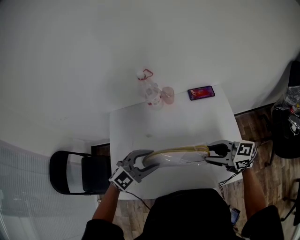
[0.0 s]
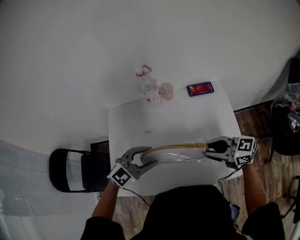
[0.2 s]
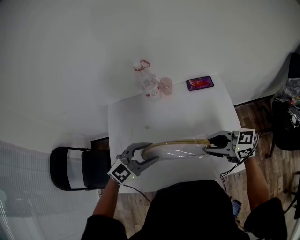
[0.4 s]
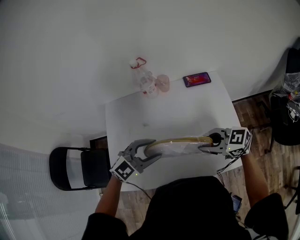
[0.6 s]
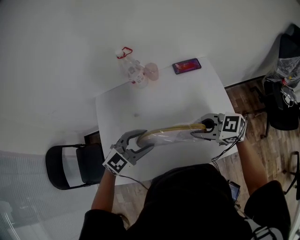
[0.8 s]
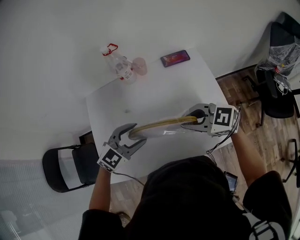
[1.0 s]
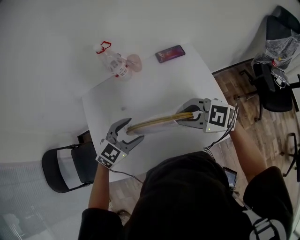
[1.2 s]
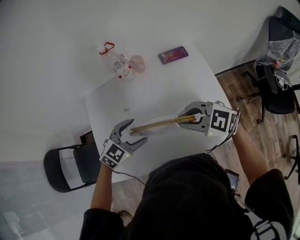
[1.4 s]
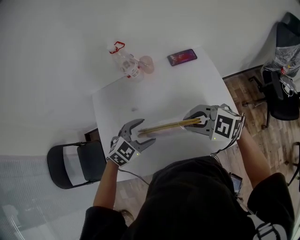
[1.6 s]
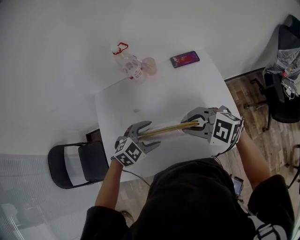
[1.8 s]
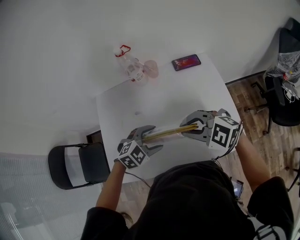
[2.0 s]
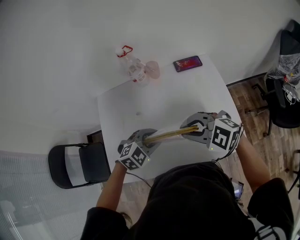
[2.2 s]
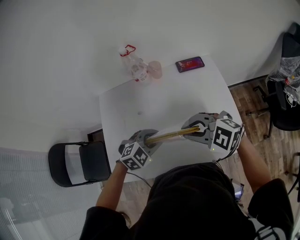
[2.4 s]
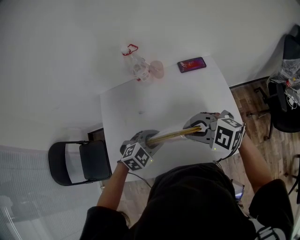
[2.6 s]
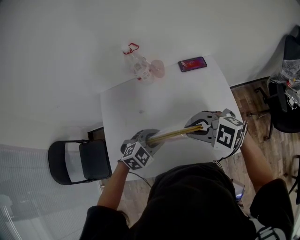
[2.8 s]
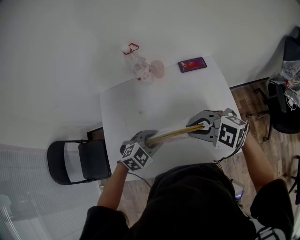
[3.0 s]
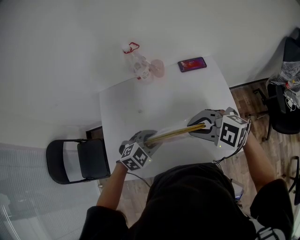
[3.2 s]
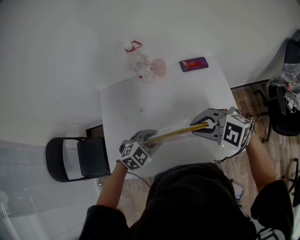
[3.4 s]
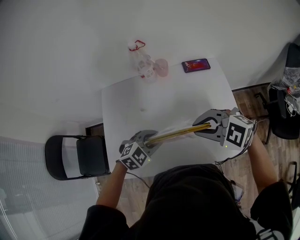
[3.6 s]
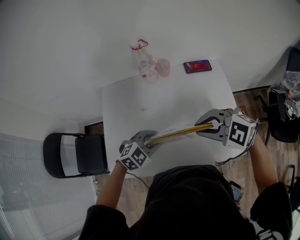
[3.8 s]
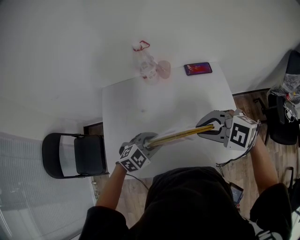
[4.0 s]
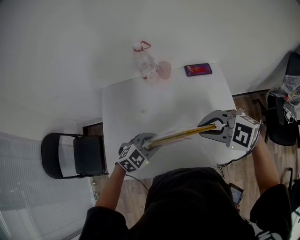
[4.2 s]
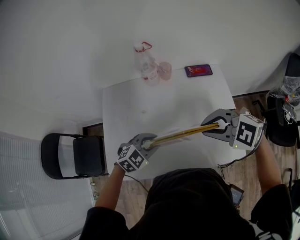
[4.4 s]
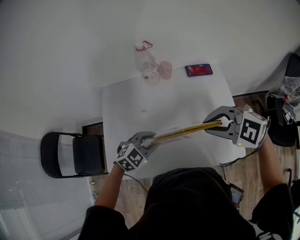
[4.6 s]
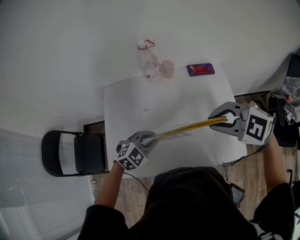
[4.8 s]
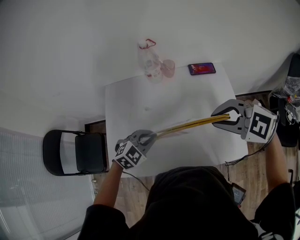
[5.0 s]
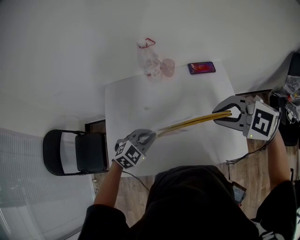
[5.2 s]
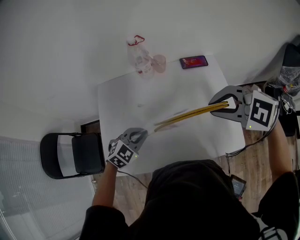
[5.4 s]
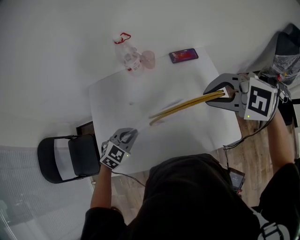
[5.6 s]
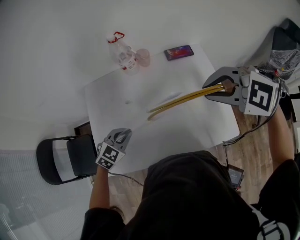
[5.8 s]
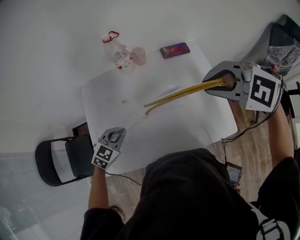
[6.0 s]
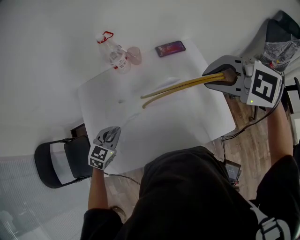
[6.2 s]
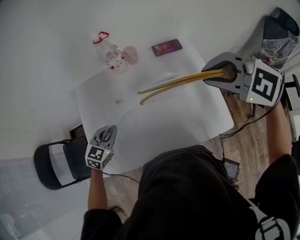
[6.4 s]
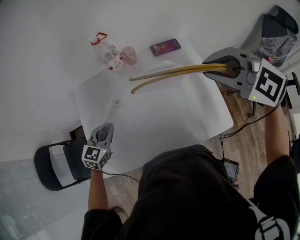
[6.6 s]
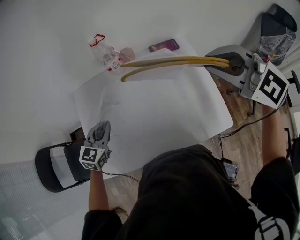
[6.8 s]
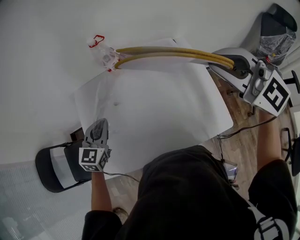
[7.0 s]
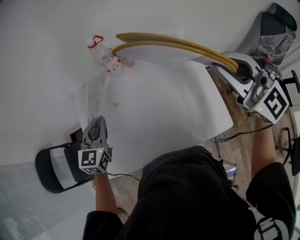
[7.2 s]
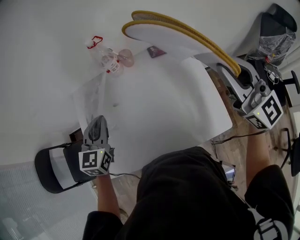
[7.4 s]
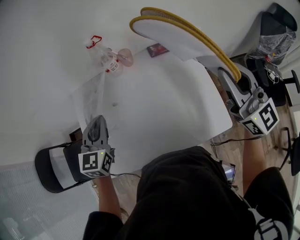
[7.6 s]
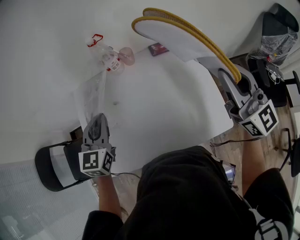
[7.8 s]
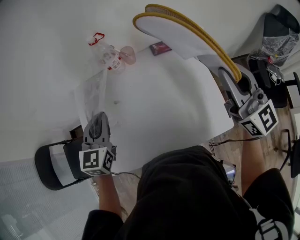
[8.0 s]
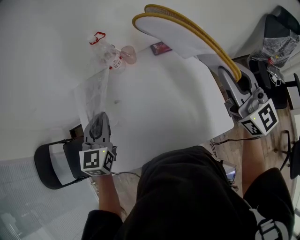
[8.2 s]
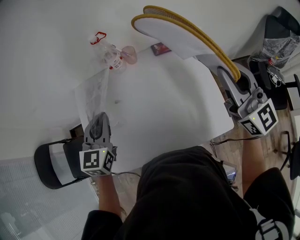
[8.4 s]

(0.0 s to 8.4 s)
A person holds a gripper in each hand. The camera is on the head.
0.0 s - 1.4 s: The right gripper changes its angle by some 30 degrees, and closes up; the left gripper goes roughly 5 cm downward.
1.4 s - 2.8 s: The left gripper closes.
2.8 s - 4.2 s: There are only small adjustments of the grippers.
4.2 s - 5.6 s: The left gripper changes place by approximately 5 cm; the right gripper goes some 5 cm upward.
5.6 s - 7.0 s: The right gripper shifts approximately 10 cm upward and to the right, and angles its fingers upward, by about 30 degrees. Meanwhile the left gripper heads upward and forward, covering about 10 cm, and swivels roughly 30 degrees.
7.0 s - 8.4 s: The left gripper heads upward, covering about 5 cm. Meanwhile the right gripper turns by about 30 degrees.

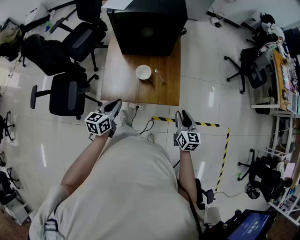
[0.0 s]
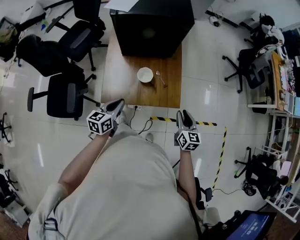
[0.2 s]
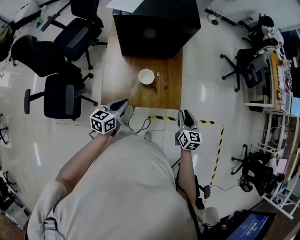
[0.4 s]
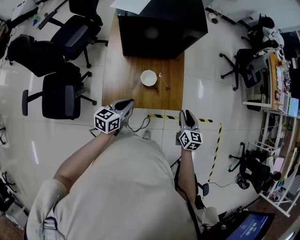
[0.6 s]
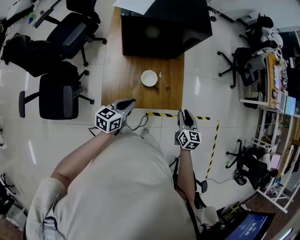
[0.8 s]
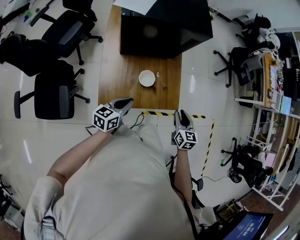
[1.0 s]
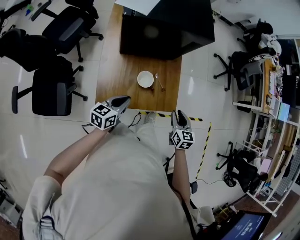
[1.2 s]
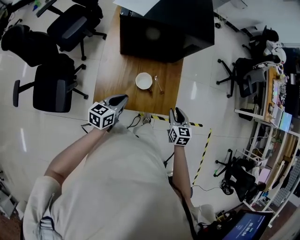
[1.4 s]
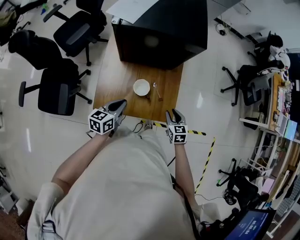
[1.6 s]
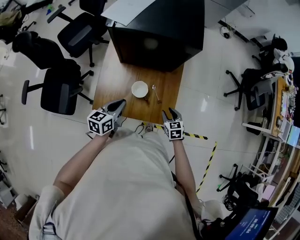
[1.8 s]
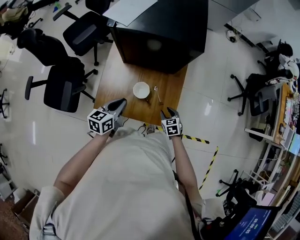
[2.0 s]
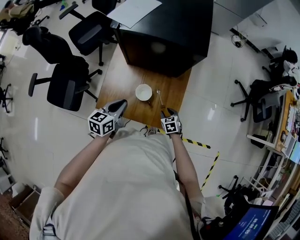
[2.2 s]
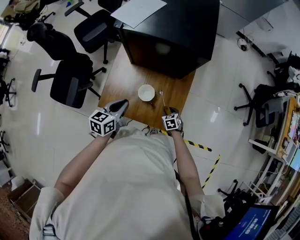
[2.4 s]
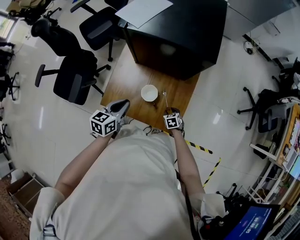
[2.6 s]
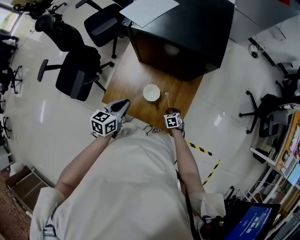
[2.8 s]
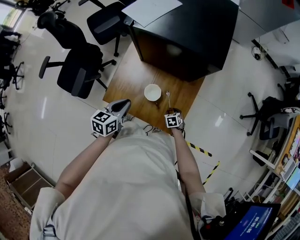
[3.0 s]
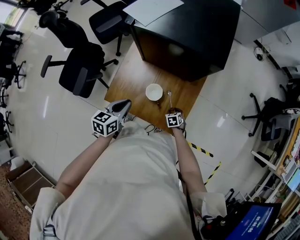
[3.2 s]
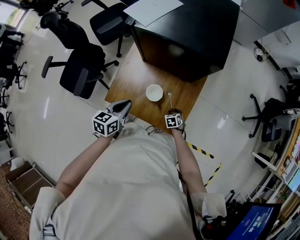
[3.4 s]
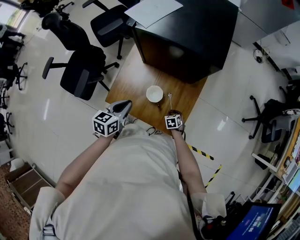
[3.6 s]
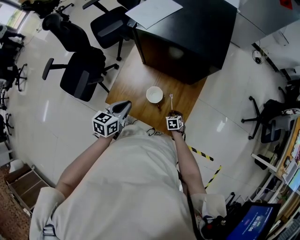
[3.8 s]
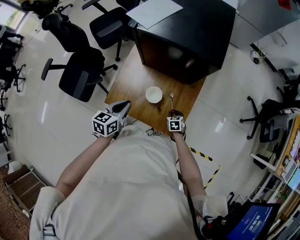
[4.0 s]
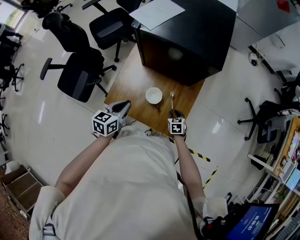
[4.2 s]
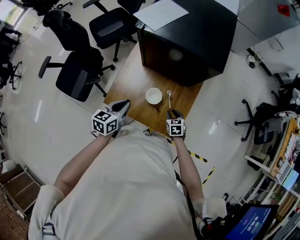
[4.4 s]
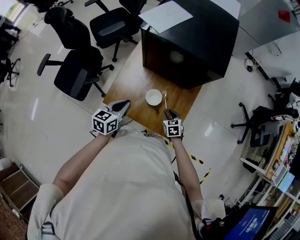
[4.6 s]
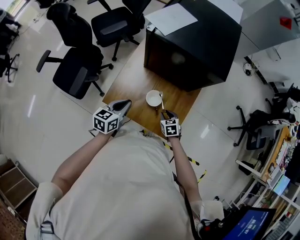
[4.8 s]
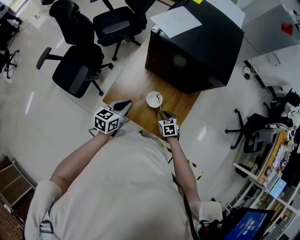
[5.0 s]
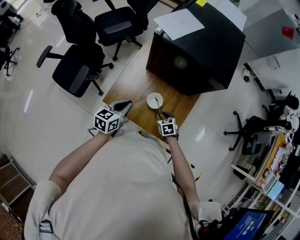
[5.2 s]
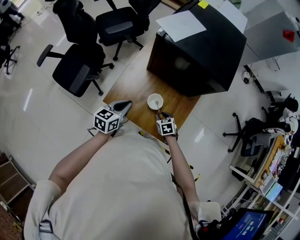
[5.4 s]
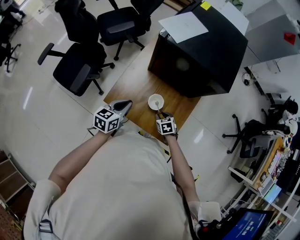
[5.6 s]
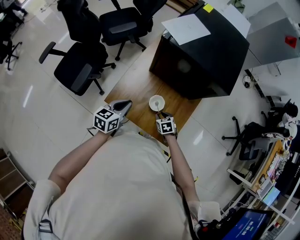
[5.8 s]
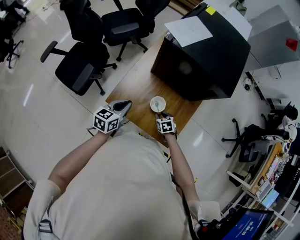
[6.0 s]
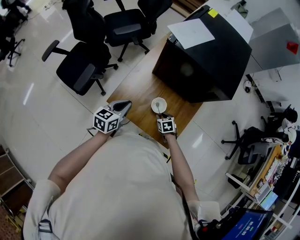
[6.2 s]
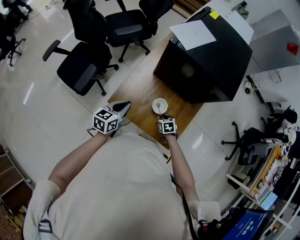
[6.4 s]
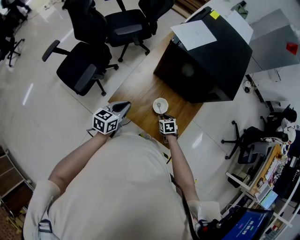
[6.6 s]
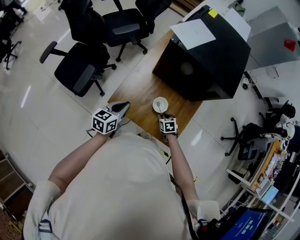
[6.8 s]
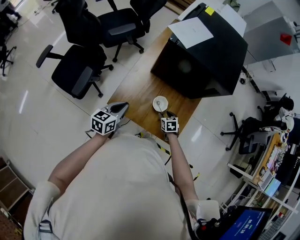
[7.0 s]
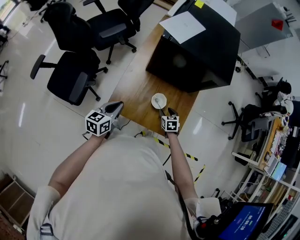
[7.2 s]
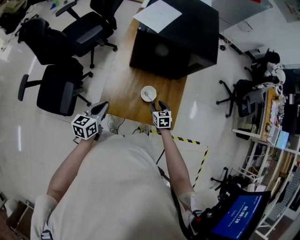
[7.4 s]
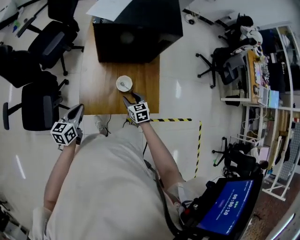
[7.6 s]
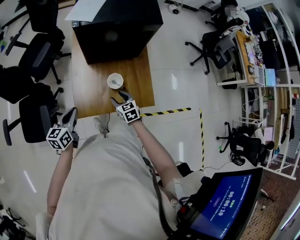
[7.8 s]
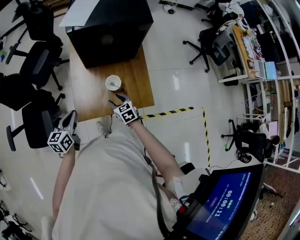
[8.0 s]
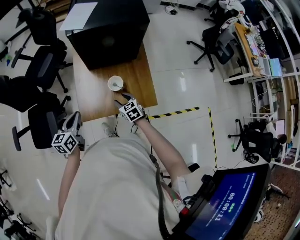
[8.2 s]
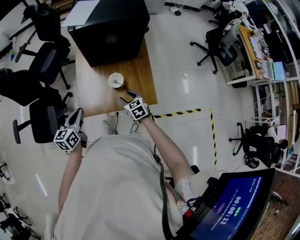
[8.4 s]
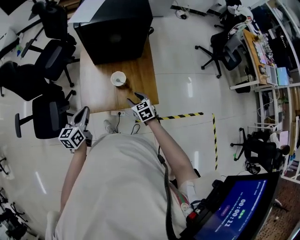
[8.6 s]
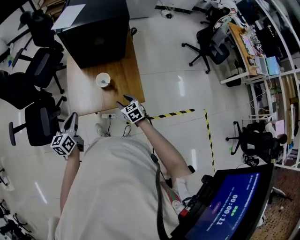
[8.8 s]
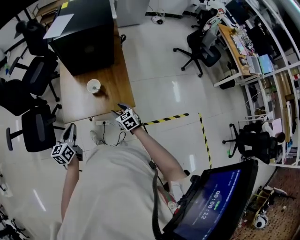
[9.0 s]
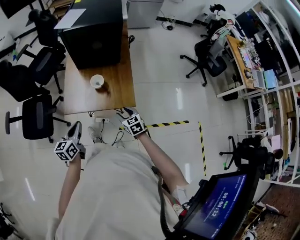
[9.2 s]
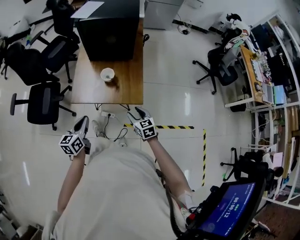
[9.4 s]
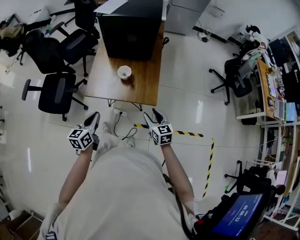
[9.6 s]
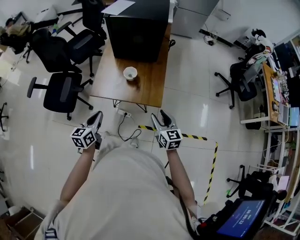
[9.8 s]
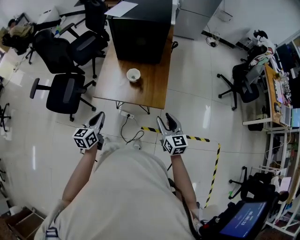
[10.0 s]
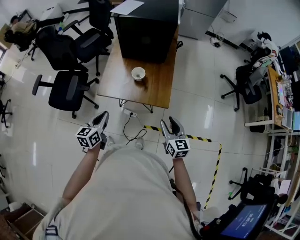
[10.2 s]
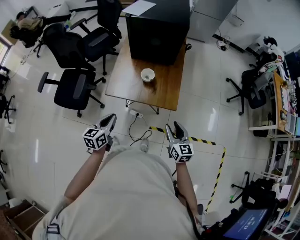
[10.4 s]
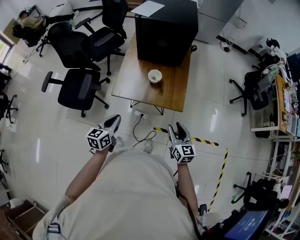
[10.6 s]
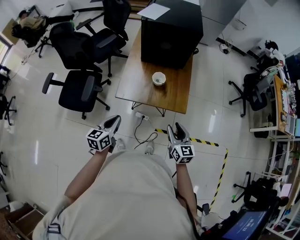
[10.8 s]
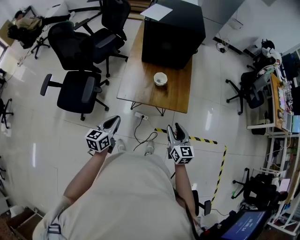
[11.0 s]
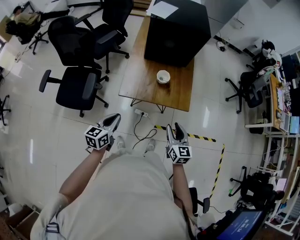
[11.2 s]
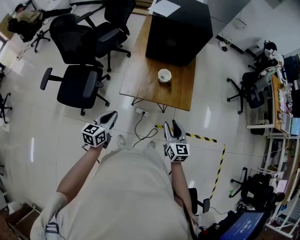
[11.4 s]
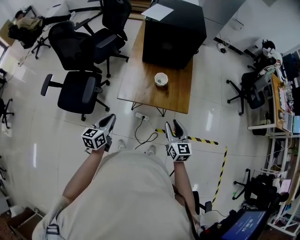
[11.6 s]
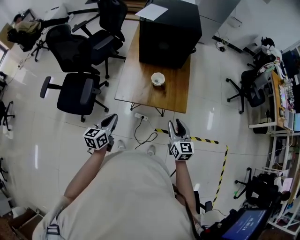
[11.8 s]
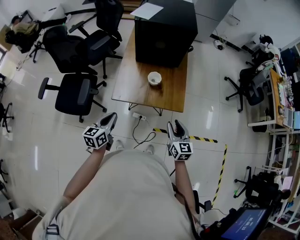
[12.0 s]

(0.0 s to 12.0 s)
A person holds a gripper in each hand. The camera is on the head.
0.0 s - 1.6 s: The left gripper is displaced forward by about 10 cm. The right gripper shifts about 20 cm forward, downward and to the left, and changes its angle by about 30 degrees.
1.6 s - 3.0 s: The right gripper travels downward by approximately 20 cm, and changes its angle by some 30 degrees.
3.0 s - 4.4 s: The right gripper heads upward, covering some 10 cm.
4.4 s - 6.0 s: The right gripper travels to the left by roughly 10 cm.
6.0 s - 7.6 s: The left gripper changes place by approximately 10 cm, while the right gripper moves upward, about 10 cm, and swivels about 40 degrees.
7.6 s - 9.0 s: Both grippers move backward and to the right, about 20 cm.
9.0 s - 10.4 s: The left gripper goes some 10 cm backward; the right gripper goes some 20 cm backward, upward and to the right, and swivels some 20 degrees.
10.4 s - 12.0 s: The two grippers go approximately 5 cm to the left.

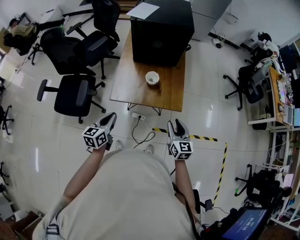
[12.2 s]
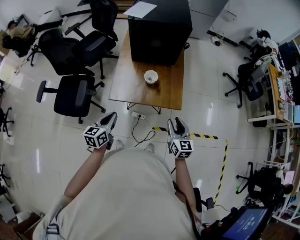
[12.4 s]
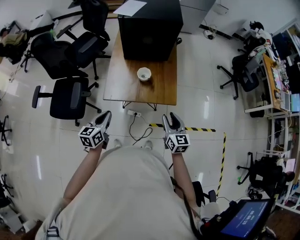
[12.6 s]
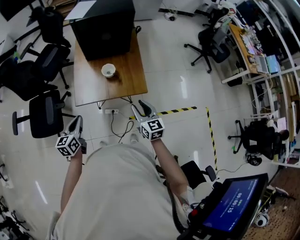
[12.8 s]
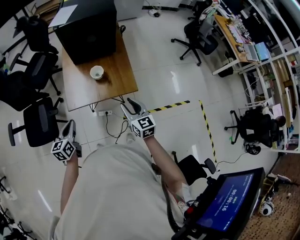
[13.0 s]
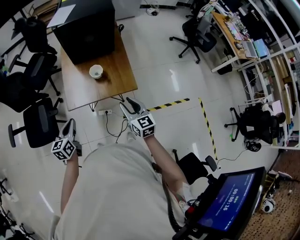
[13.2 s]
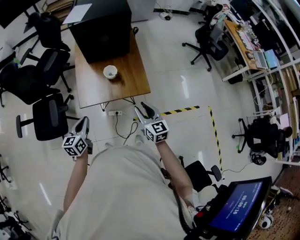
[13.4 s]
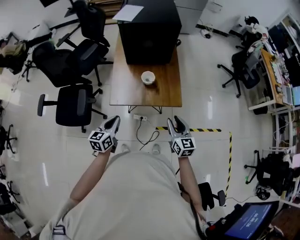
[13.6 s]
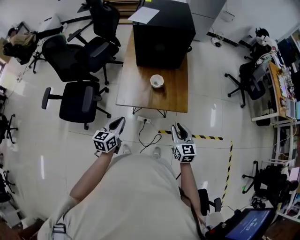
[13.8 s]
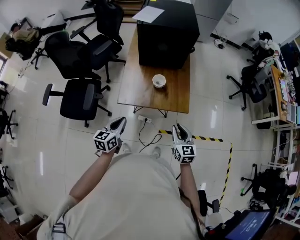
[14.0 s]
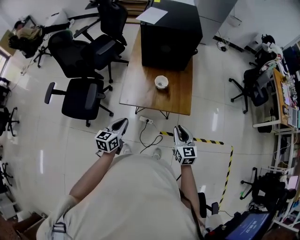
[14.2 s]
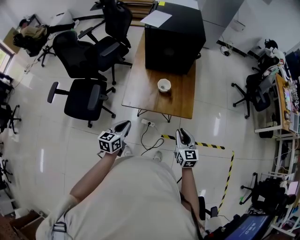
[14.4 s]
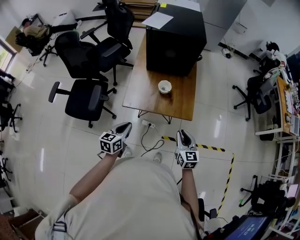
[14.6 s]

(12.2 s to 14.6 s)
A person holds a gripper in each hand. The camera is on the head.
12.2 s - 14.6 s: The grippers move only a little.

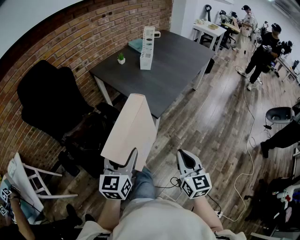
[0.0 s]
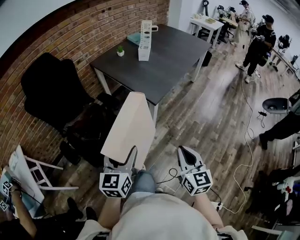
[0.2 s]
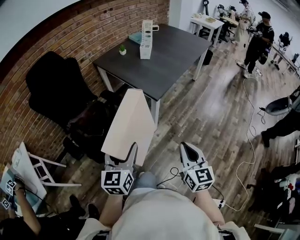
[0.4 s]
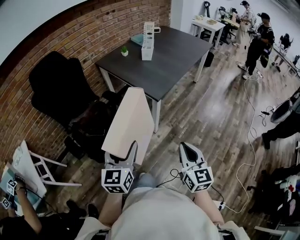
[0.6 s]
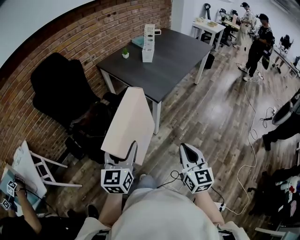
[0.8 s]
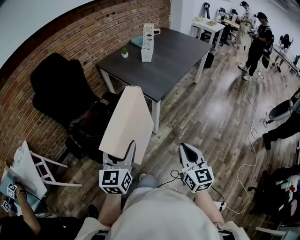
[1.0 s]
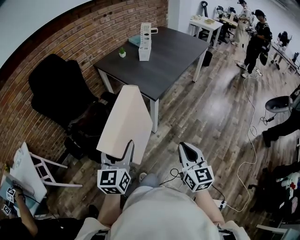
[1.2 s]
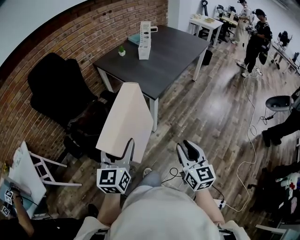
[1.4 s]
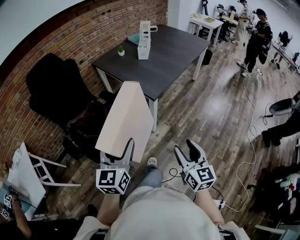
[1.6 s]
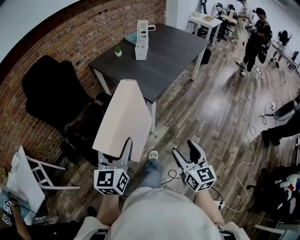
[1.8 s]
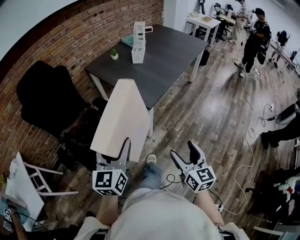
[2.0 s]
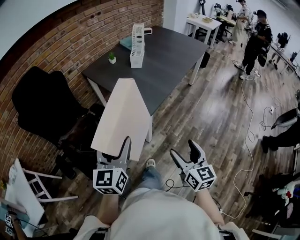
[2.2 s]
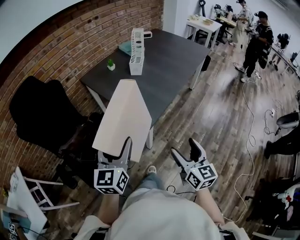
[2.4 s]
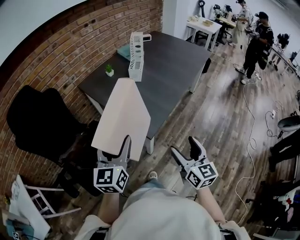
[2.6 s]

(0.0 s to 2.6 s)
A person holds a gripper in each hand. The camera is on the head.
0.0 s - 1.2 s: The two grippers go about 10 cm backward.
1.2 s - 2.6 s: The grippers both shift forward by about 30 cm. The right gripper opens.
